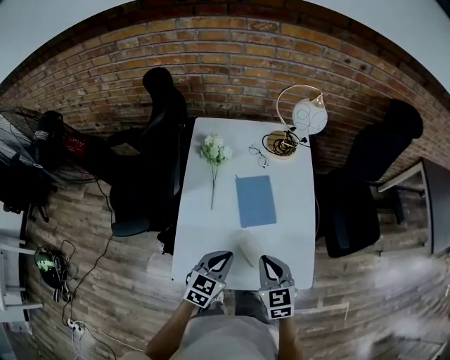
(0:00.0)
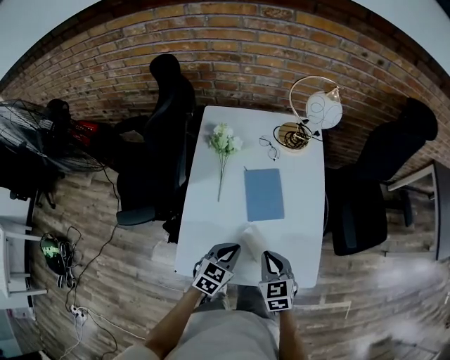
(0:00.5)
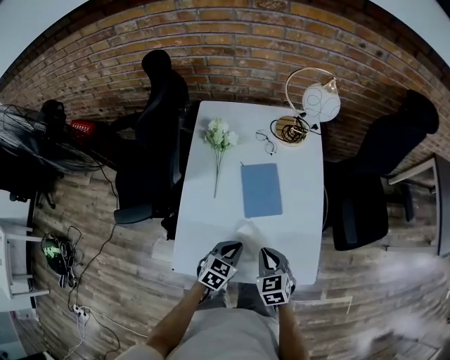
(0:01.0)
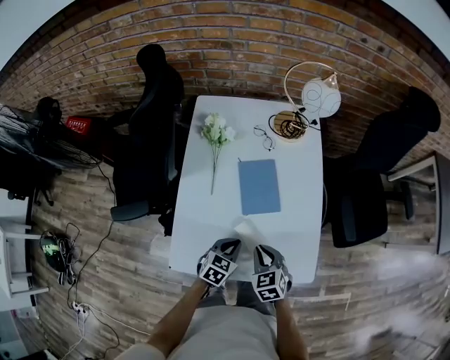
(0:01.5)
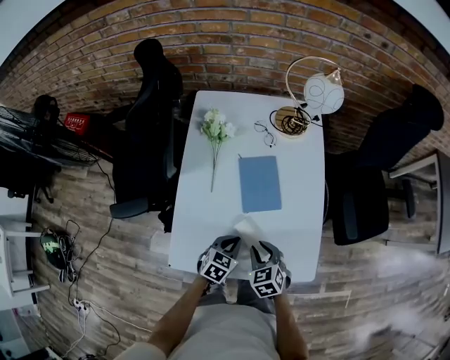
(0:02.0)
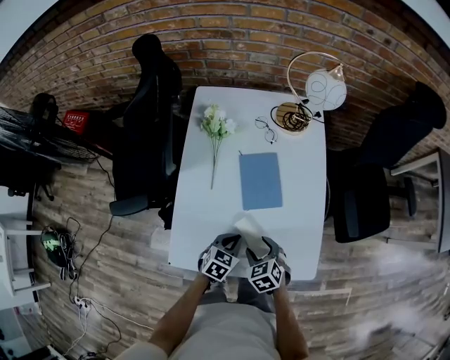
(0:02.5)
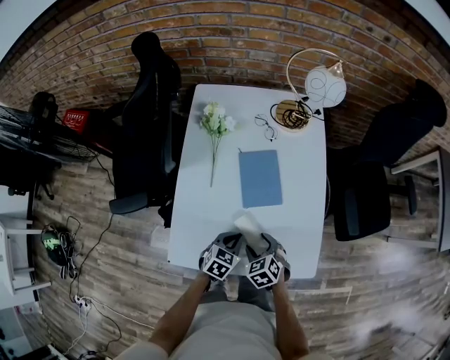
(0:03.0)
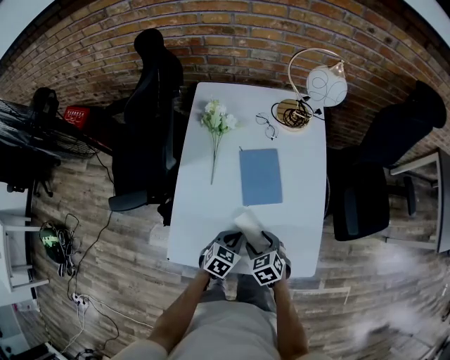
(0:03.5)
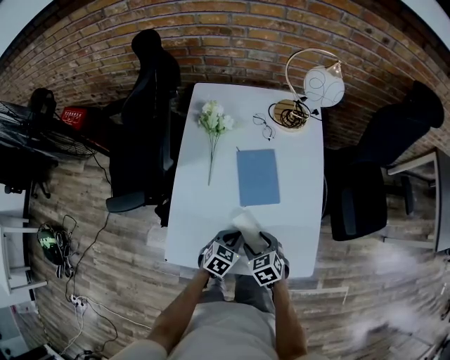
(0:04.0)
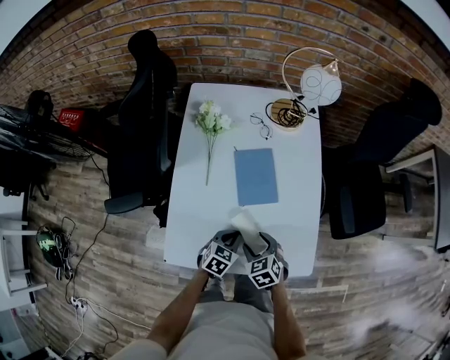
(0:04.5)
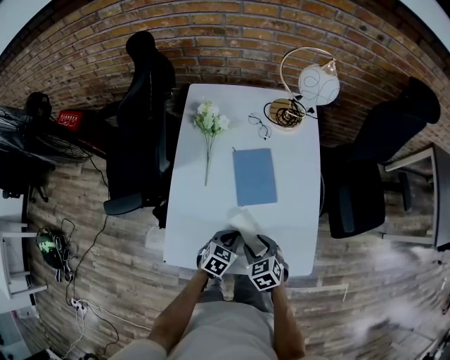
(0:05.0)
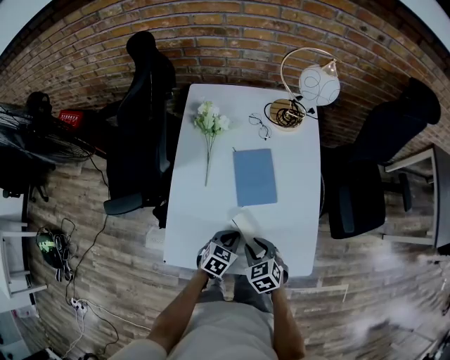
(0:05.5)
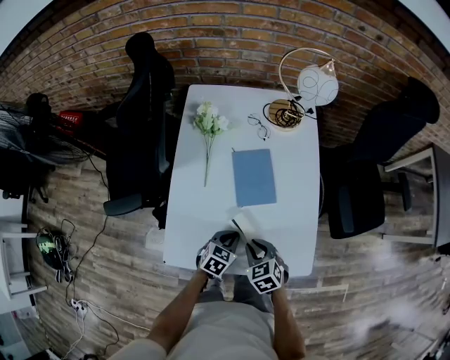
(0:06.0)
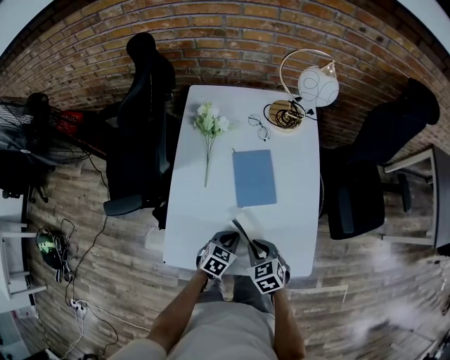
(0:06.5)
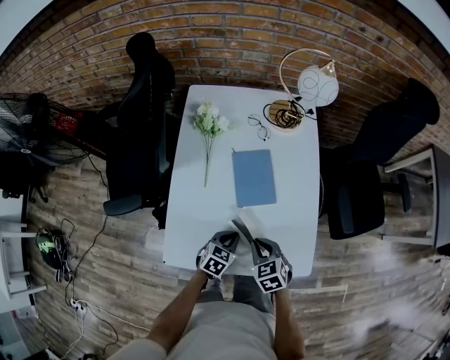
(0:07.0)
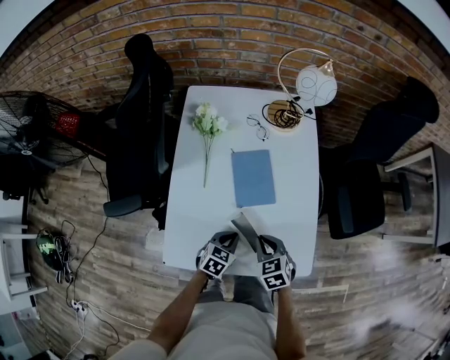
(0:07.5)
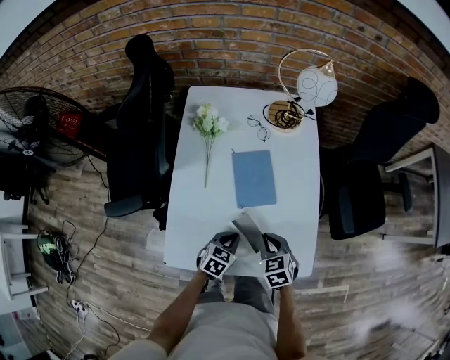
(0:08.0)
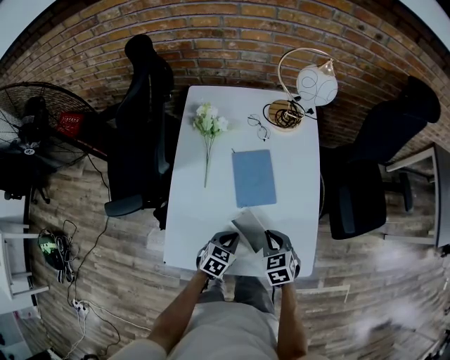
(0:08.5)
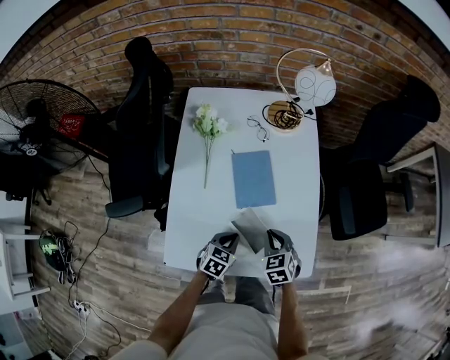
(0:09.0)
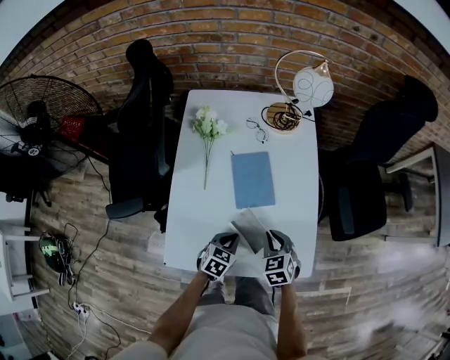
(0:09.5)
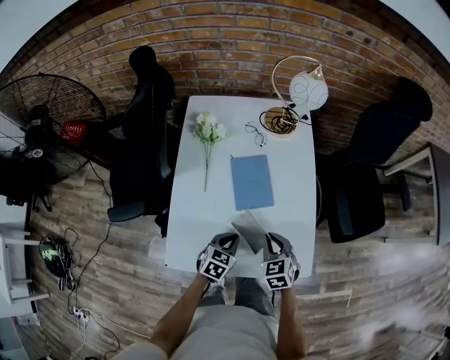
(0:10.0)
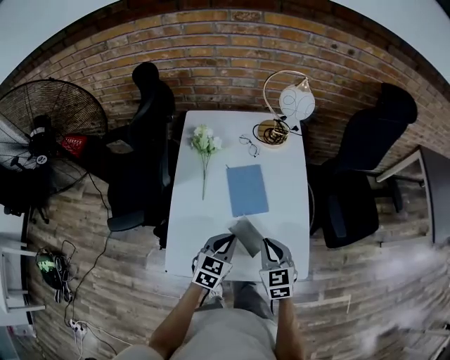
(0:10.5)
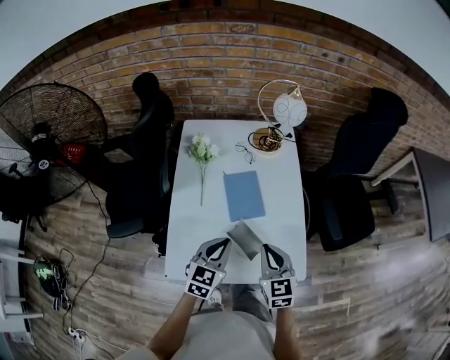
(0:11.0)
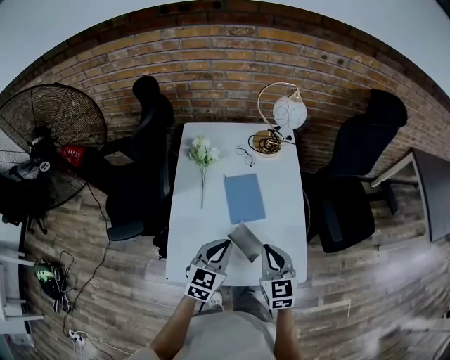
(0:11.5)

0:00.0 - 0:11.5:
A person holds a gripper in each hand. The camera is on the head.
0:00.0 - 0:02.0: Both grippers travel together downward, some 15 cm. The right gripper changes its angle by approximately 20 degrees.
0:02.0 - 0:04.0: The right gripper opens up.
0:04.0 - 0:06.0: The right gripper closes up.
0:06.0 - 0:07.5: There are only small adjustments of the grippers.
0:07.5 - 0:09.5: There are only small adjustments of the grippers.
0:09.5 - 0:11.5: The grippers both shift upward by approximately 15 cm. The left gripper swivels some 30 degrees, while the right gripper changes its angle by roughly 30 degrees.

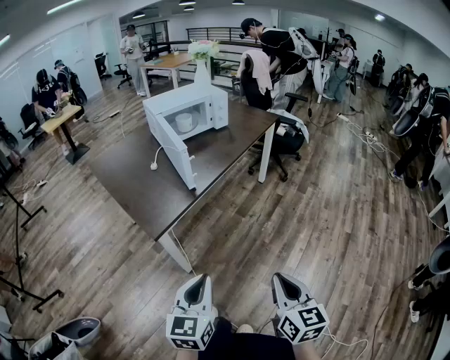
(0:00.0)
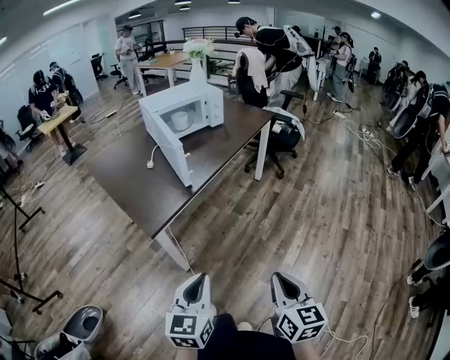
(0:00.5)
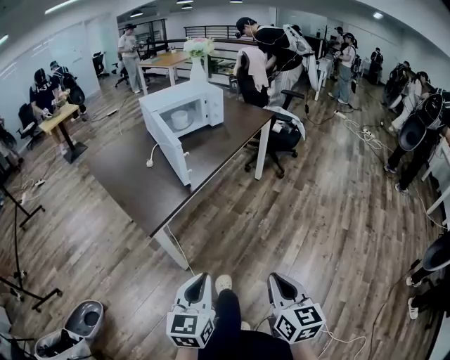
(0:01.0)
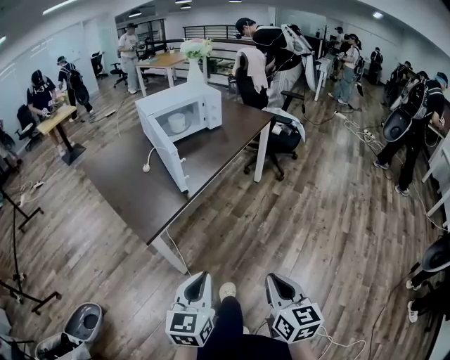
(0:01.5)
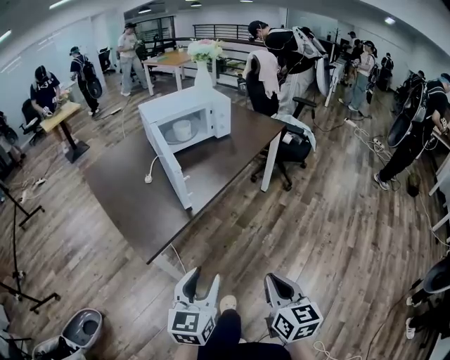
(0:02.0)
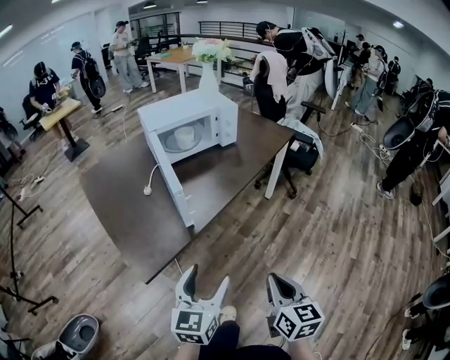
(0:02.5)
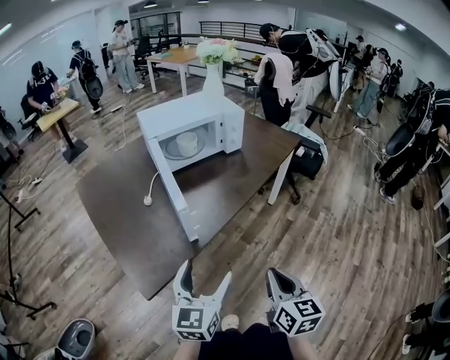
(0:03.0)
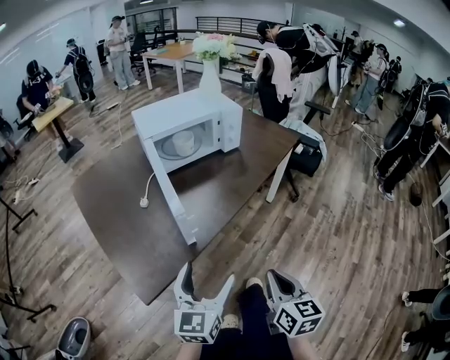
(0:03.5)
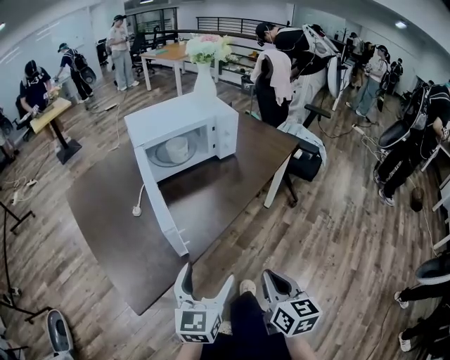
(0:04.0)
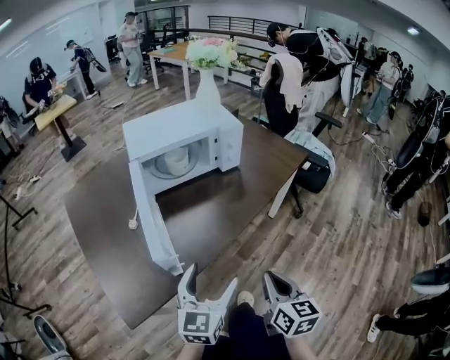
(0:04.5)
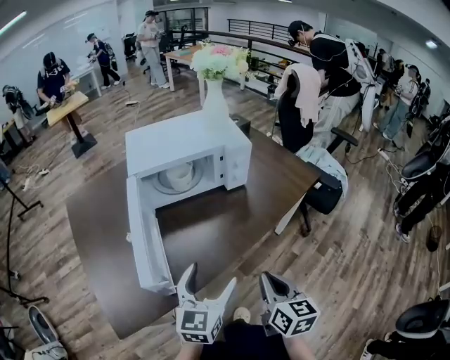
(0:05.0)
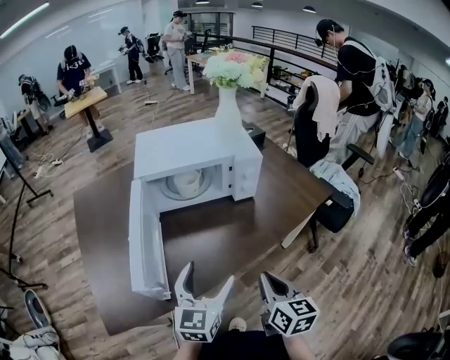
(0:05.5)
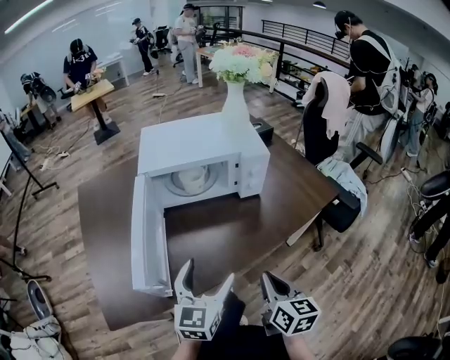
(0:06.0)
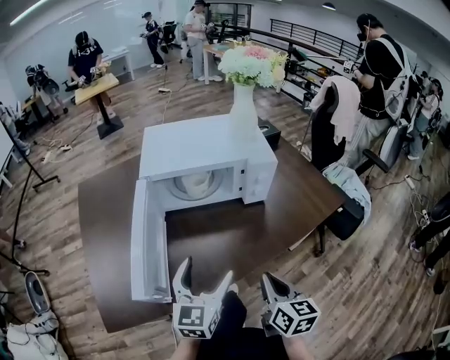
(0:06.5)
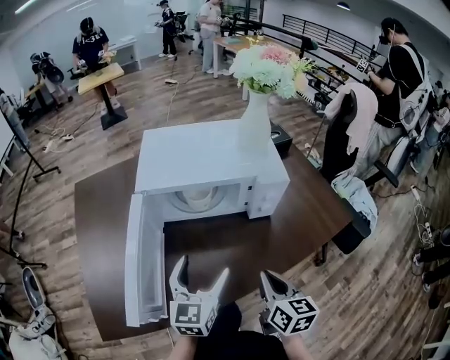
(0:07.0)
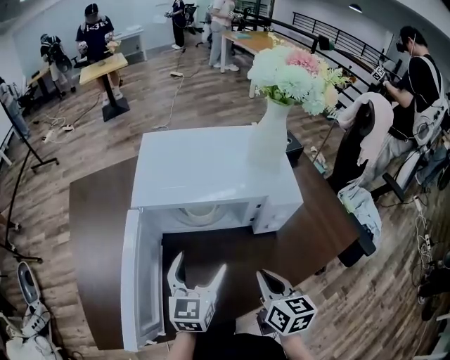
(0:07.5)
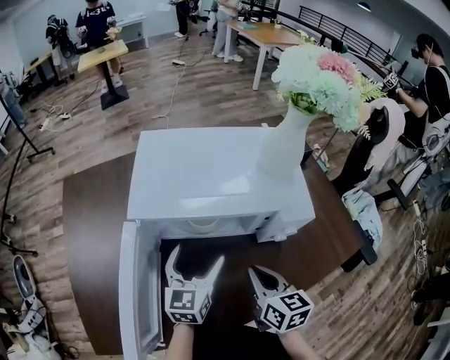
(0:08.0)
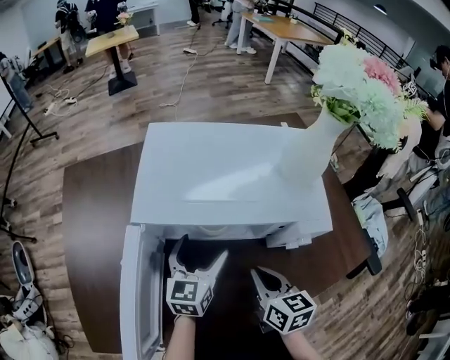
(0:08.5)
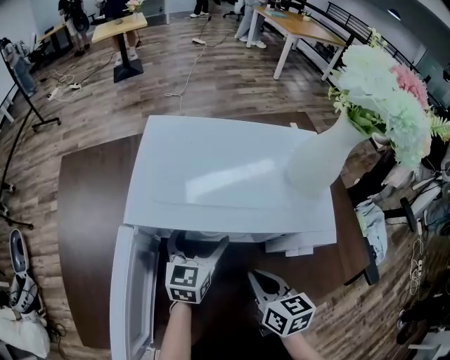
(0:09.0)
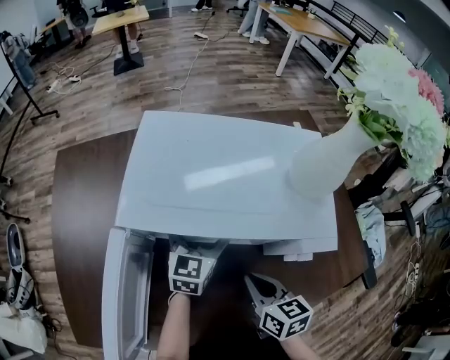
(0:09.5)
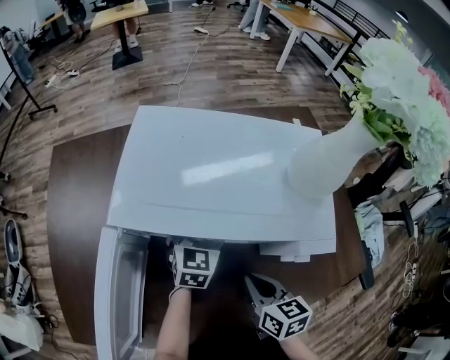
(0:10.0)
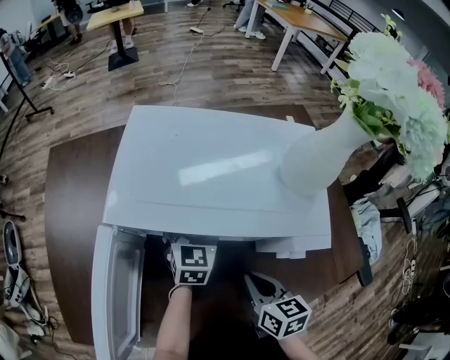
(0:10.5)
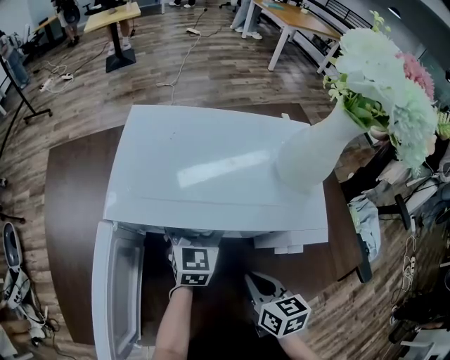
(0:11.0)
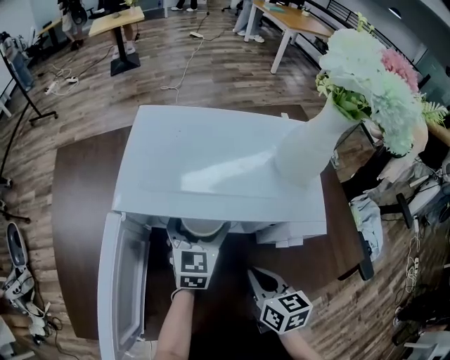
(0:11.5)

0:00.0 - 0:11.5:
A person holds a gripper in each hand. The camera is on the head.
0:00.0 - 0:02.0: Both grippers travel together forward, about 15 cm.
0:02.0 - 0:04.0: The grippers both shift forward by approximately 25 cm. The left gripper opens its fingers.
0:04.0 - 0:06.0: The two grippers go about 25 cm forward.
0:06.0 - 0:07.5: The two grippers go about 20 cm forward.
0:07.5 - 0:09.5: The left gripper heads forward, covering about 20 cm. Meanwhile the right gripper is displaced forward and downward by about 10 cm, and turns by about 20 degrees.
0:09.5 - 0:11.5: The grippers stay close to where they were, moving slightly.

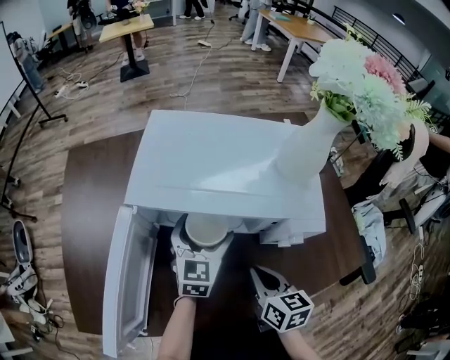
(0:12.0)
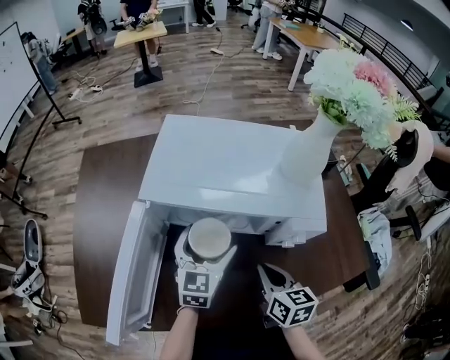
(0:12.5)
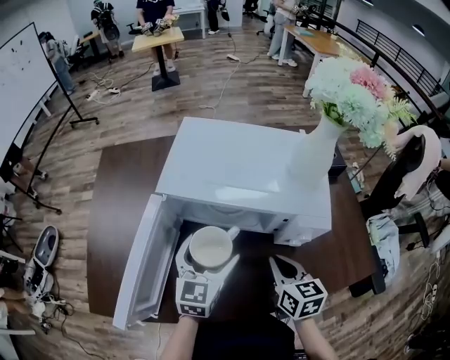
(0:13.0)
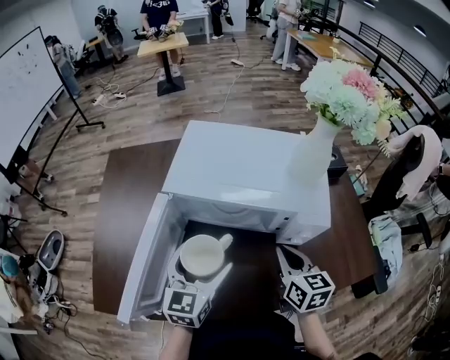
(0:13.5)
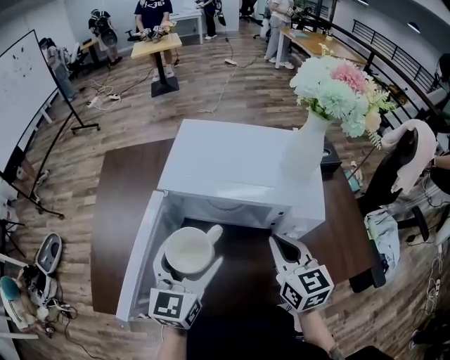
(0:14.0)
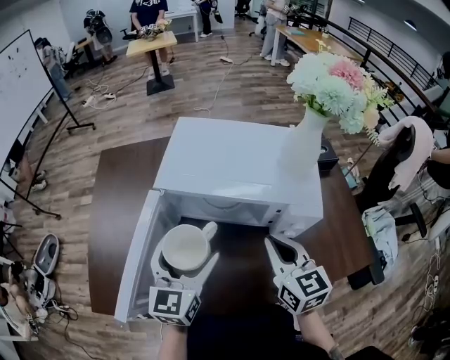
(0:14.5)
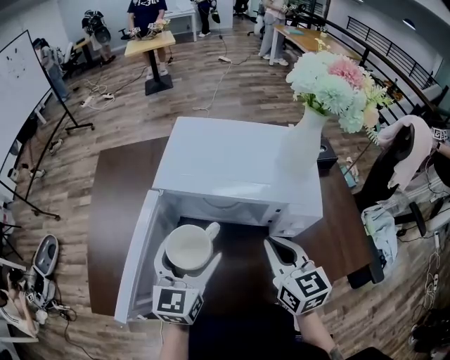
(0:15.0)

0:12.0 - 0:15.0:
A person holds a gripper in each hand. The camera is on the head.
0:12.0 - 0:13.5: The left gripper goes approximately 15 cm backward, upward and to the left, while the right gripper shifts about 5 cm upward.
0:13.5 - 0:15.0: The right gripper moves upward, approximately 5 cm.

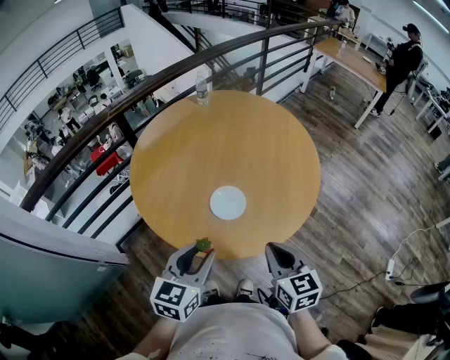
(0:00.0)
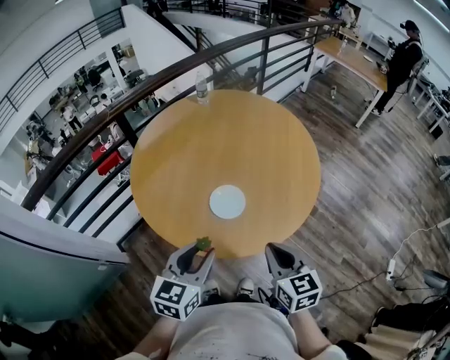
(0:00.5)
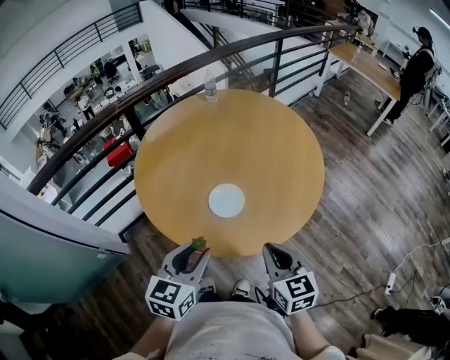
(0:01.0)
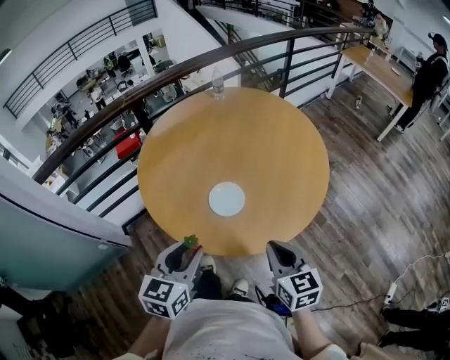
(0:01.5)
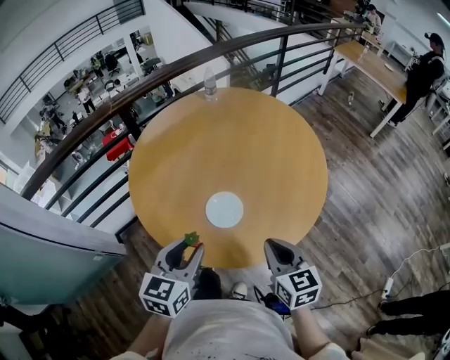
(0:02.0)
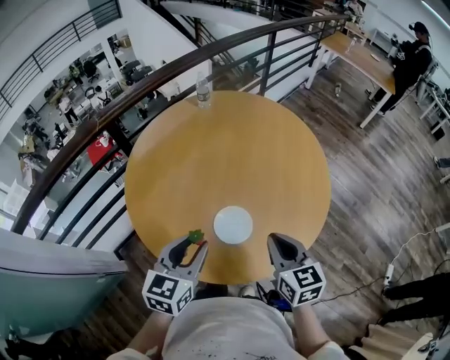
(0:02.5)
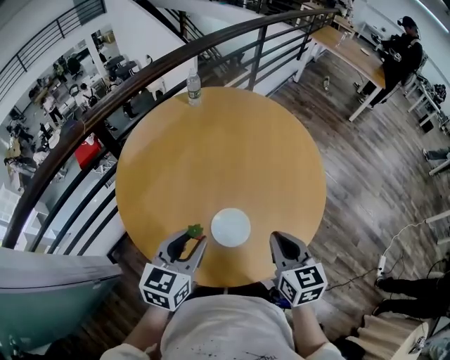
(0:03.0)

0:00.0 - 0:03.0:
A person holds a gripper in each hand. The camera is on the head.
0:00.0 - 0:01.5: The right gripper heads to the right, covering some 5 cm.
0:01.5 - 0:03.0: The right gripper shifts about 15 cm forward and to the left; the left gripper moves forward, about 15 cm.
